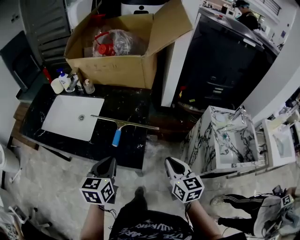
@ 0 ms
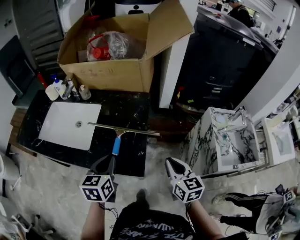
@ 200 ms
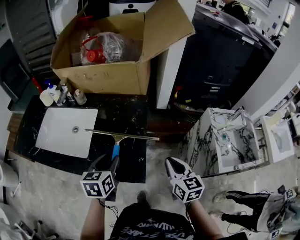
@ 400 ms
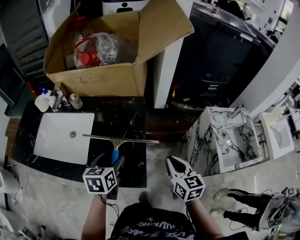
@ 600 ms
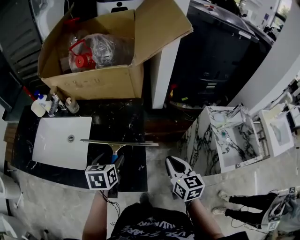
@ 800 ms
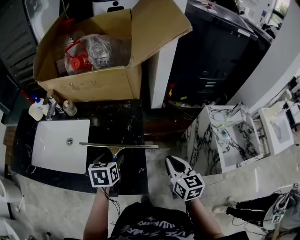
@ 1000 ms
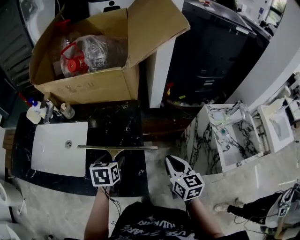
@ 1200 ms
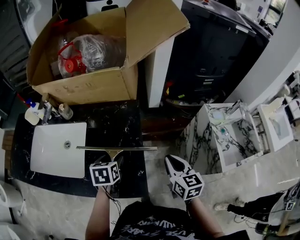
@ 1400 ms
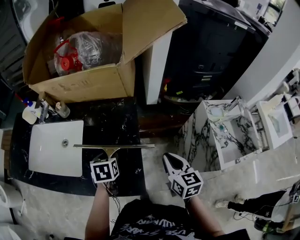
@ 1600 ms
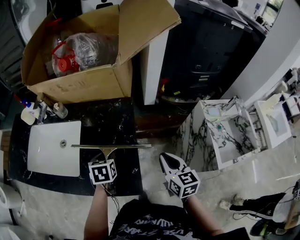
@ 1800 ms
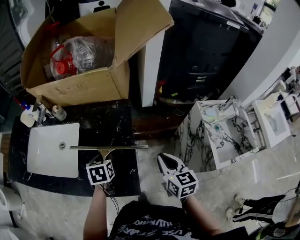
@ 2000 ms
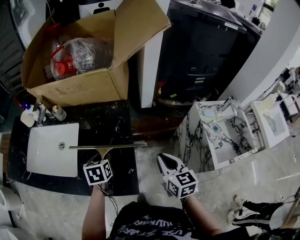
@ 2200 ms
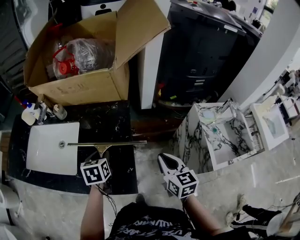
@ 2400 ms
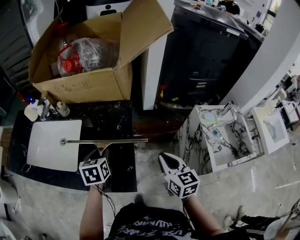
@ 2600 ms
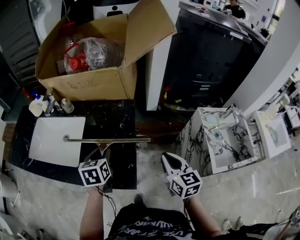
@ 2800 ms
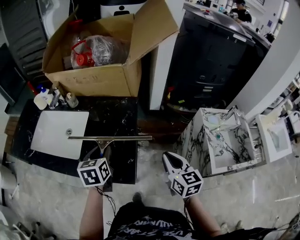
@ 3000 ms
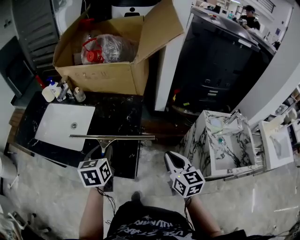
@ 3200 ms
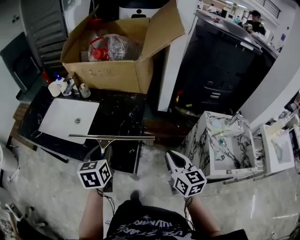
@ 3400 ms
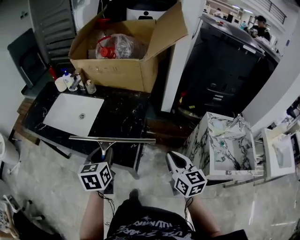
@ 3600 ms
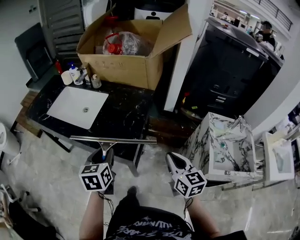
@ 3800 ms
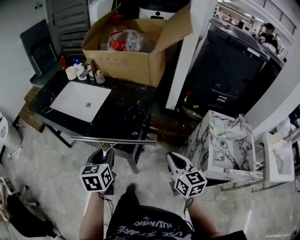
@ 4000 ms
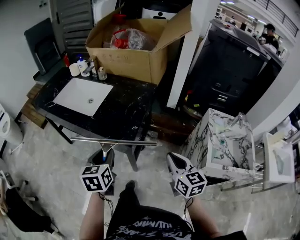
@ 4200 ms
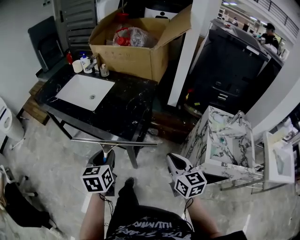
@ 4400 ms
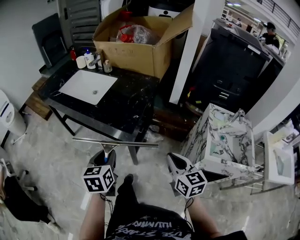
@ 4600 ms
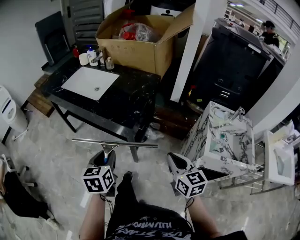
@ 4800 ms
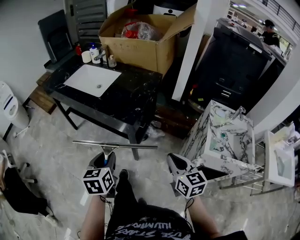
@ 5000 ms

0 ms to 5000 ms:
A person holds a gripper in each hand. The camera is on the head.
0 ms to 1600 ms: The right gripper heads forward, covering some 15 cm. The left gripper is displaced forward and downward by roughly 25 cm, swivels some 30 degrees, and opens.
1600 ms to 3400 ms: The left gripper heads backward and upward, covering about 20 cm, and turns by approximately 30 degrees. The right gripper is displaced backward and upward by roughly 10 cm.
3400 ms to 5000 ms: The grippers both shift backward by about 30 cm.

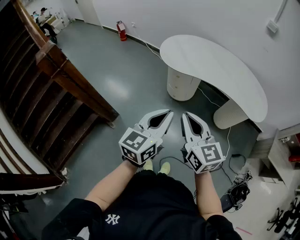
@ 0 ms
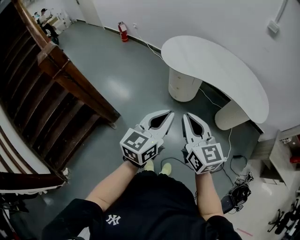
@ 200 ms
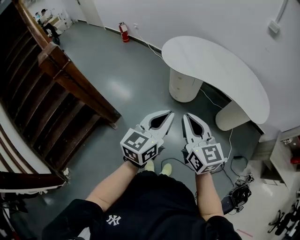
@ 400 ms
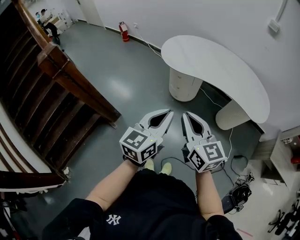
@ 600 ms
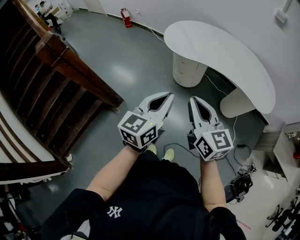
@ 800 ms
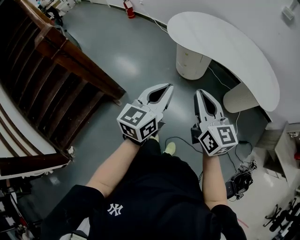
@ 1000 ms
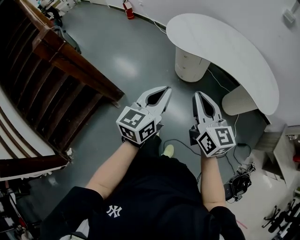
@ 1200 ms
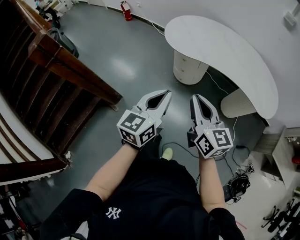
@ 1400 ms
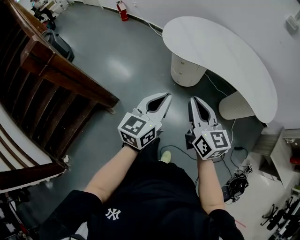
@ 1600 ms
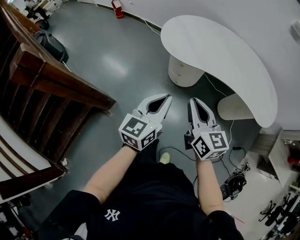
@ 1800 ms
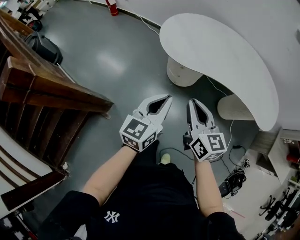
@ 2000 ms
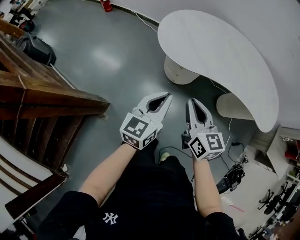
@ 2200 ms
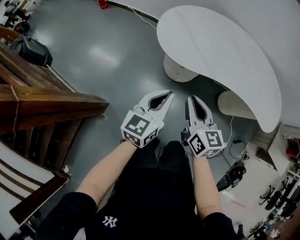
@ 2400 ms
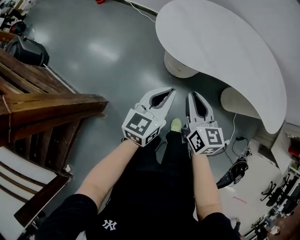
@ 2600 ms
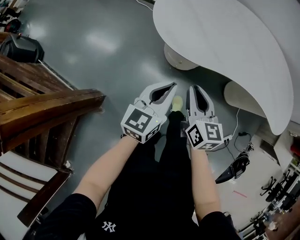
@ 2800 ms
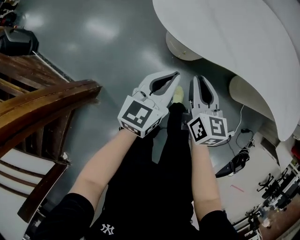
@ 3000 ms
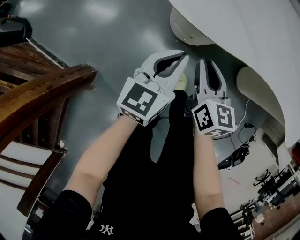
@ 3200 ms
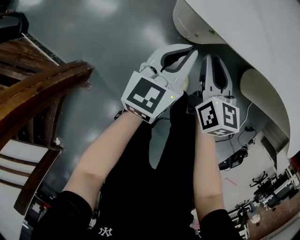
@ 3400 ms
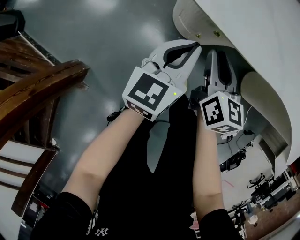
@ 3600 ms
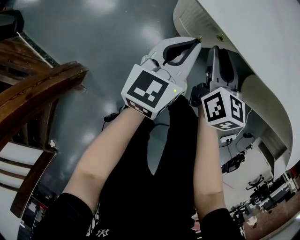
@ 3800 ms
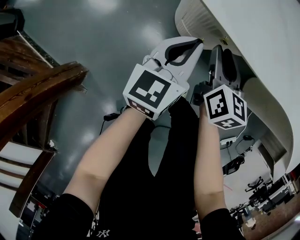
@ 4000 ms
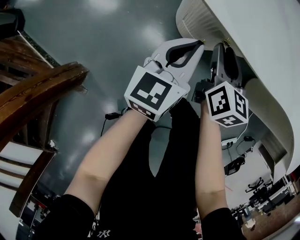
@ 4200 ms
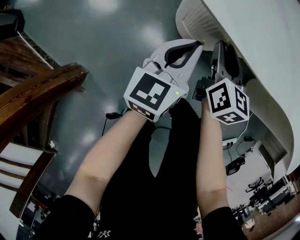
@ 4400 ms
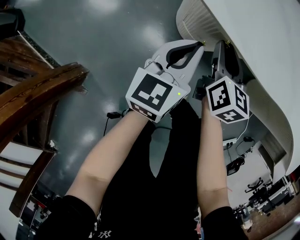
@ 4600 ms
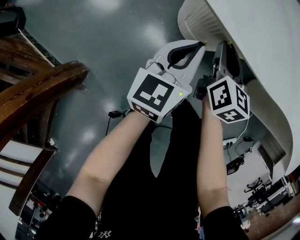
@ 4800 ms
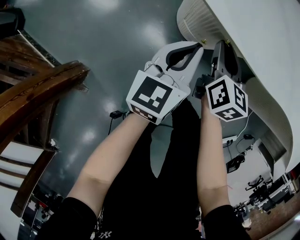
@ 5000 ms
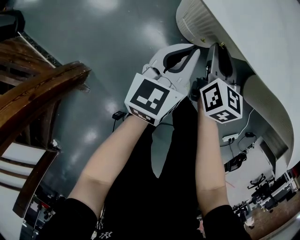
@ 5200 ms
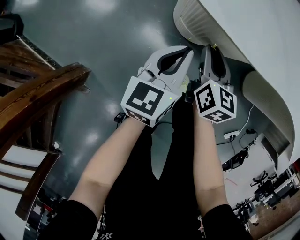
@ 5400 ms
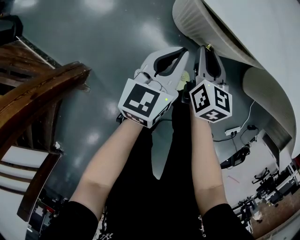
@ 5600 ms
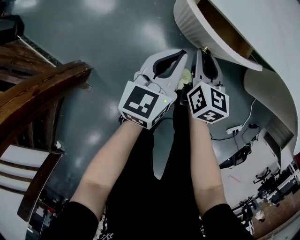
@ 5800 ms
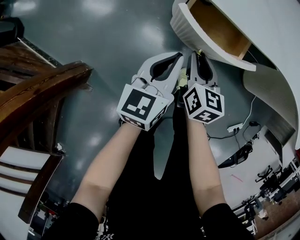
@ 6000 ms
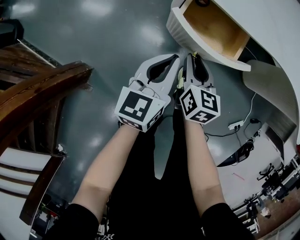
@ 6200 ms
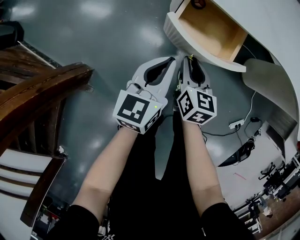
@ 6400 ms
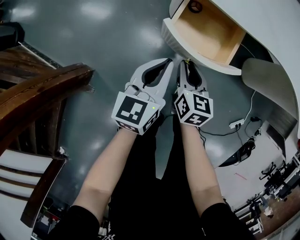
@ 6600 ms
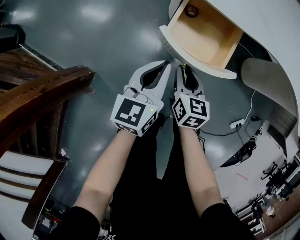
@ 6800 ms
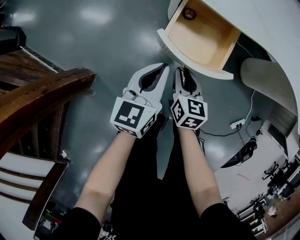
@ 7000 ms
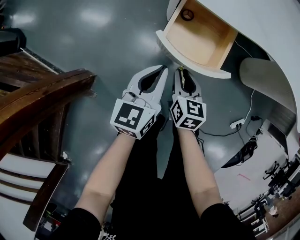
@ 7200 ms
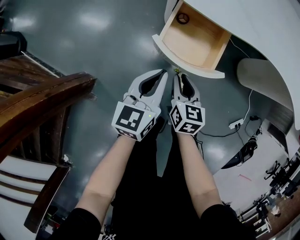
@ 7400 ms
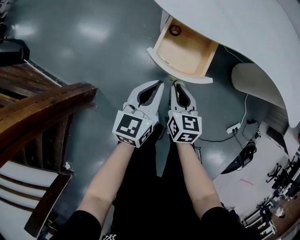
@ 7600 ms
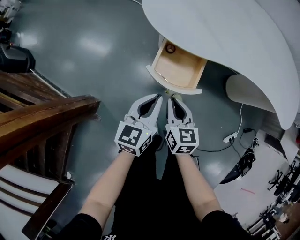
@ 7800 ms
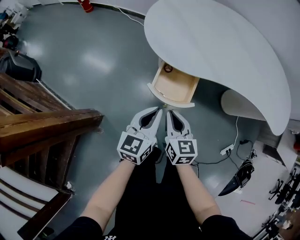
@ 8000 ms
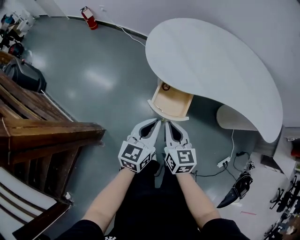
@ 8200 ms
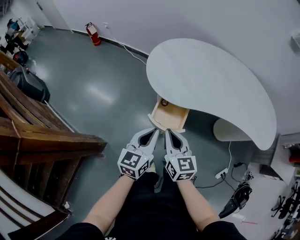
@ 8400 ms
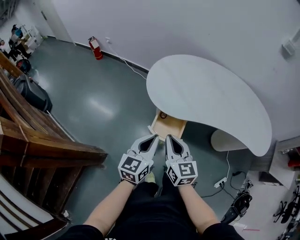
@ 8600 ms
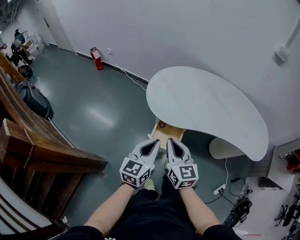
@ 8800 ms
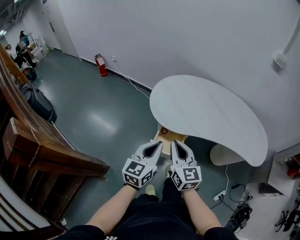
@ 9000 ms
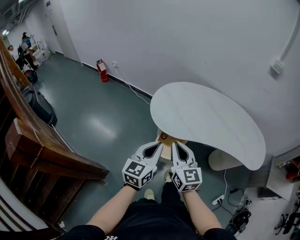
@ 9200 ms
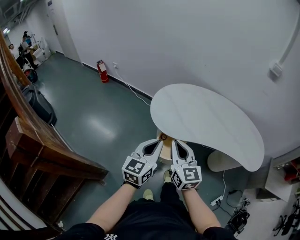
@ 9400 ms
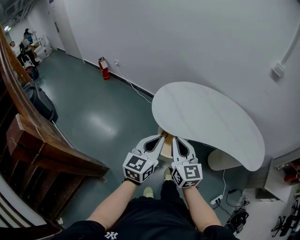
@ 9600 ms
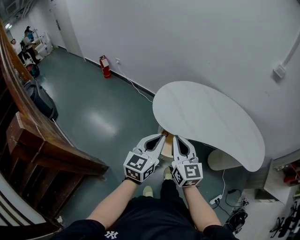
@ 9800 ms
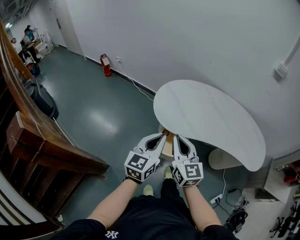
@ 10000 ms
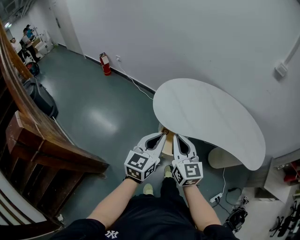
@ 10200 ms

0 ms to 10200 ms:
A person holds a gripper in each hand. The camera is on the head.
0 ms to 1400 ms: The grippers both shift forward by approximately 5 cm.
1400 ms to 3000 ms: Both grippers move forward and downward, roughly 50 cm. The right gripper turns by about 30 degrees.
3000 ms to 4400 ms: Both grippers travel together downward and forward, about 25 cm.
4400 ms to 5800 ms: The two grippers go about 10 cm backward.
5800 ms to 7200 ms: The grippers both shift backward by about 10 cm.
7200 ms to 8800 ms: The two grippers go some 40 cm upward. The right gripper swivels roughly 30 degrees.
8800 ms to 10200 ms: The grippers both shift upward by approximately 10 cm.

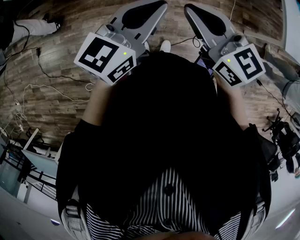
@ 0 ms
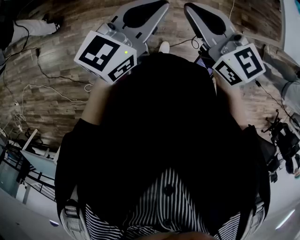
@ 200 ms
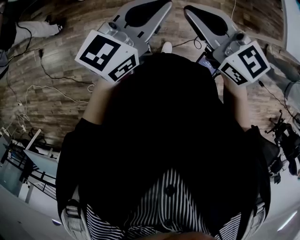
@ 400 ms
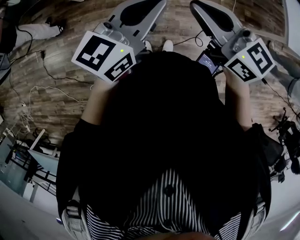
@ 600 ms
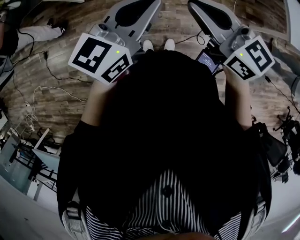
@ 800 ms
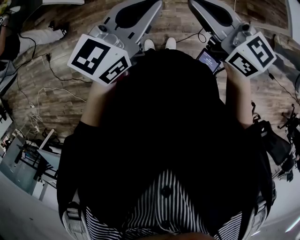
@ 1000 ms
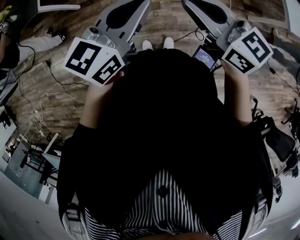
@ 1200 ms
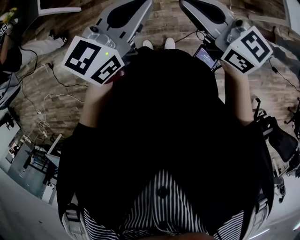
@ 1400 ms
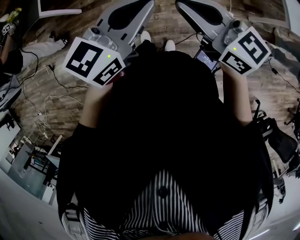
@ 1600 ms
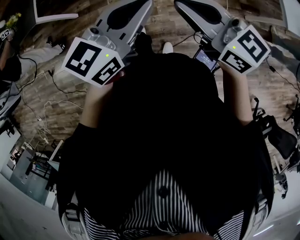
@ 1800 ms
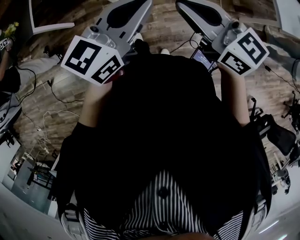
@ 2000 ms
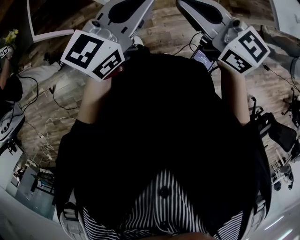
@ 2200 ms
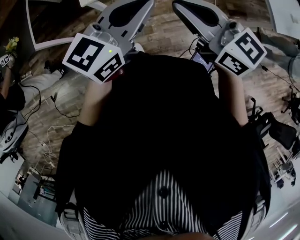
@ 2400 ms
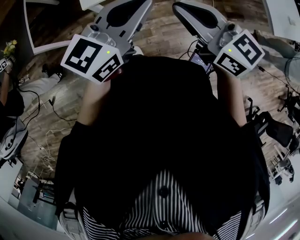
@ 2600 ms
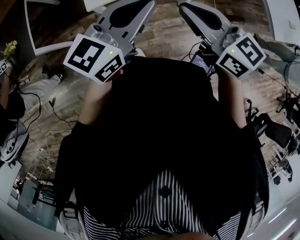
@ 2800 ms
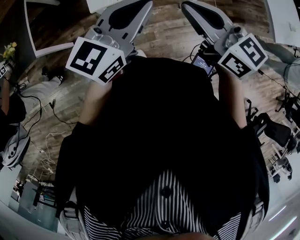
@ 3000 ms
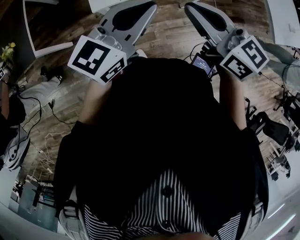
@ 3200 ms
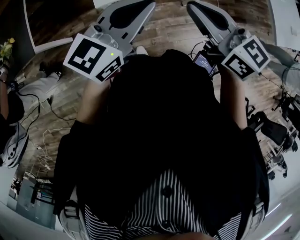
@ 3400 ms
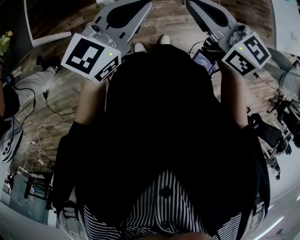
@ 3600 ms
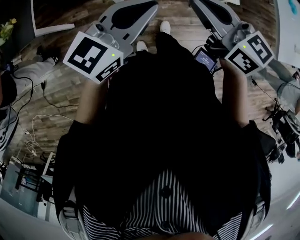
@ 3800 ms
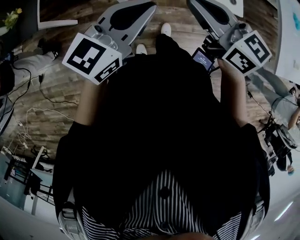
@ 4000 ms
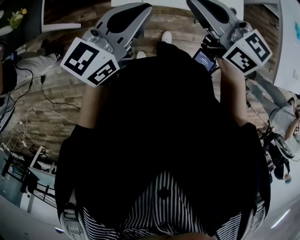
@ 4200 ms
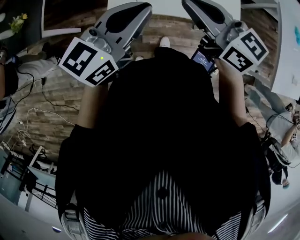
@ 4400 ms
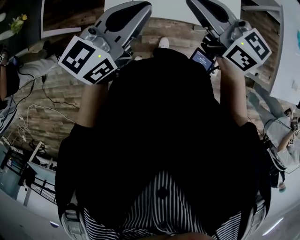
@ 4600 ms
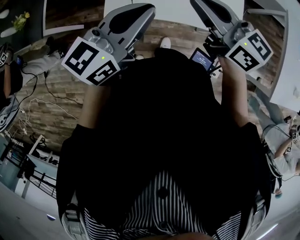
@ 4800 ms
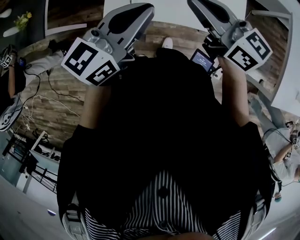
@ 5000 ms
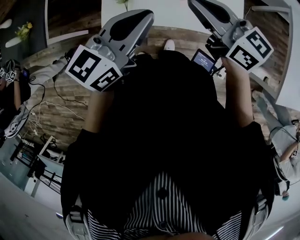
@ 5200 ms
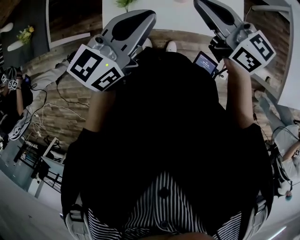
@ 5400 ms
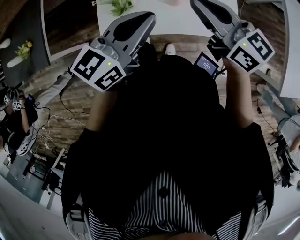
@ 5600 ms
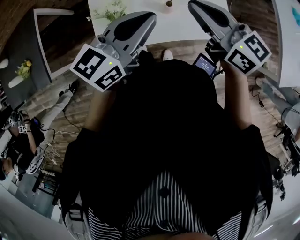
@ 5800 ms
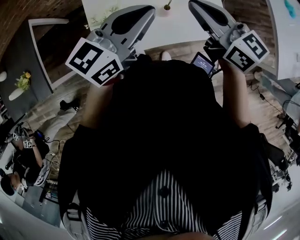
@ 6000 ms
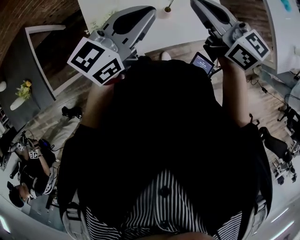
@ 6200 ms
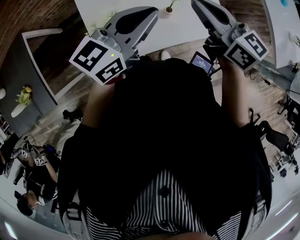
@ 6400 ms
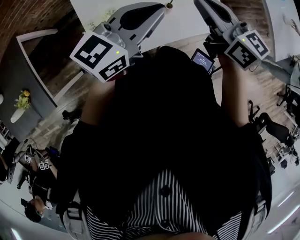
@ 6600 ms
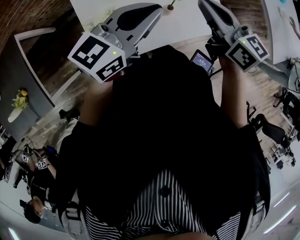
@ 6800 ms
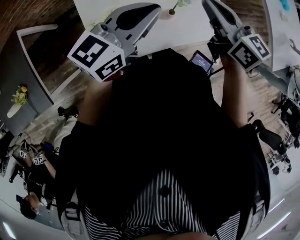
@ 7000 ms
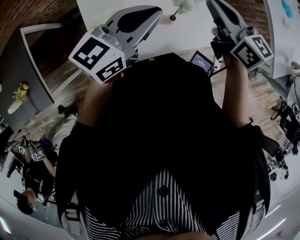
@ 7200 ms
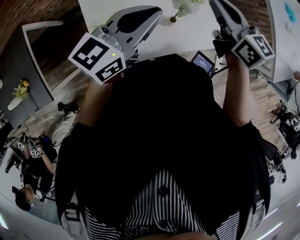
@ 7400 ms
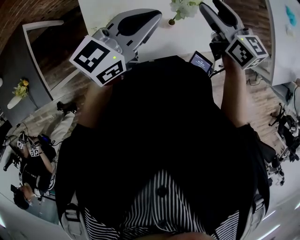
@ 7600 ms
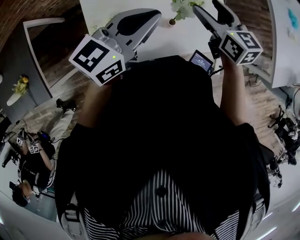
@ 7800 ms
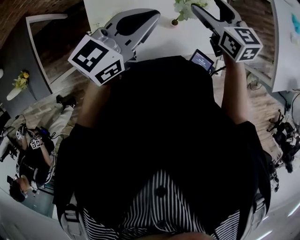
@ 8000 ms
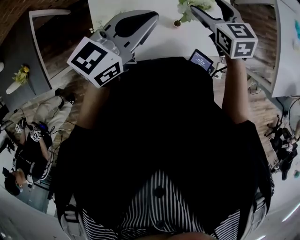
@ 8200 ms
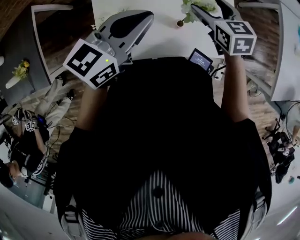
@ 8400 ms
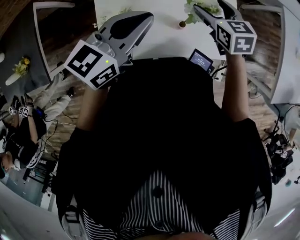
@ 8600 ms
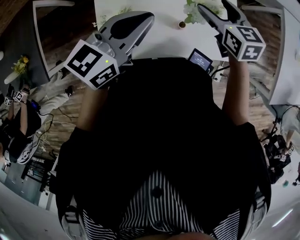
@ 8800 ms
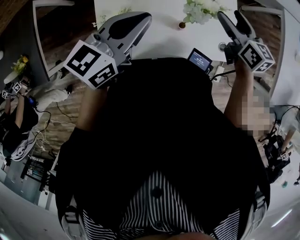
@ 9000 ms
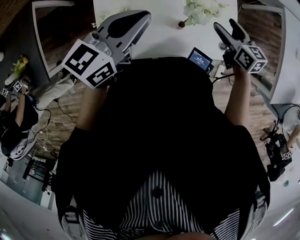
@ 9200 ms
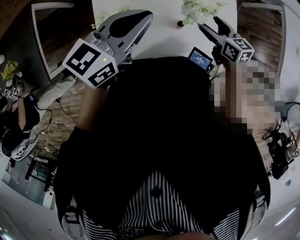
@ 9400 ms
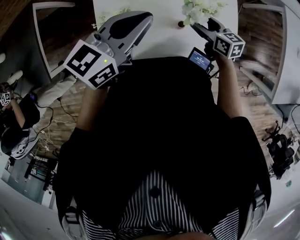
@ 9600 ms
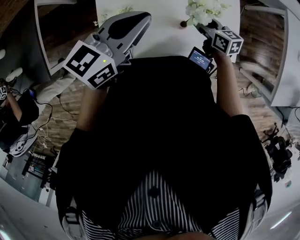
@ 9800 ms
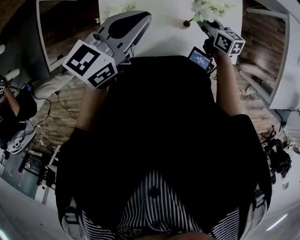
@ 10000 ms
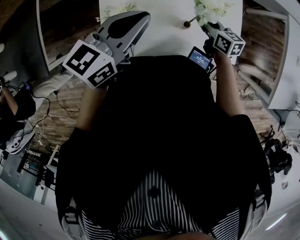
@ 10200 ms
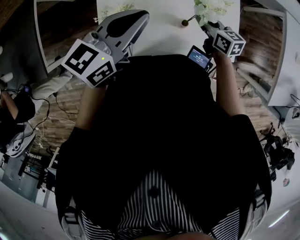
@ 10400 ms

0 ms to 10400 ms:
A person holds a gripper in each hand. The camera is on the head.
0 ms to 1400 ms: The grippers both shift to the right by approximately 10 cm.
1400 ms to 3000 ms: Both grippers travel together forward and to the left, about 30 cm.
3000 ms to 4400 ms: The two grippers go some 15 cm forward.
4400 ms to 6000 ms: The grippers both shift forward and to the right by about 20 cm.
6000 ms to 7400 ms: The right gripper travels forward by roughly 10 cm; the left gripper goes roughly 10 cm forward.
7400 ms to 9000 ms: The right gripper is displaced downward by approximately 10 cm, and opens its fingers.
9000 ms to 10400 ms: The right gripper moves downward and to the left, roughly 15 cm, and closes.
